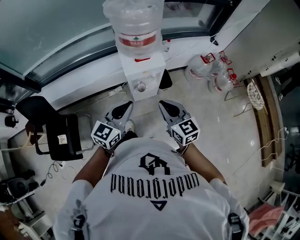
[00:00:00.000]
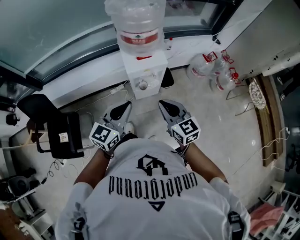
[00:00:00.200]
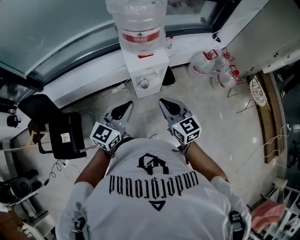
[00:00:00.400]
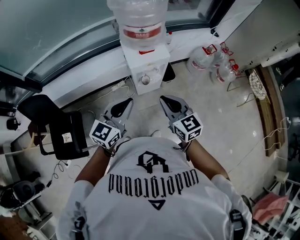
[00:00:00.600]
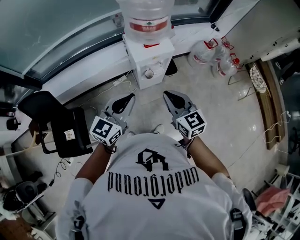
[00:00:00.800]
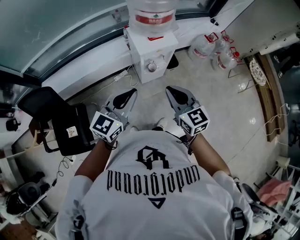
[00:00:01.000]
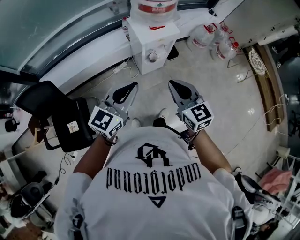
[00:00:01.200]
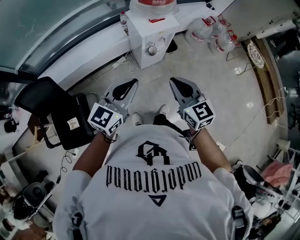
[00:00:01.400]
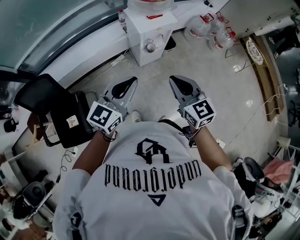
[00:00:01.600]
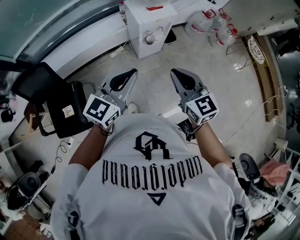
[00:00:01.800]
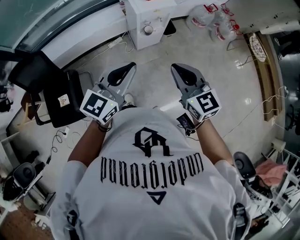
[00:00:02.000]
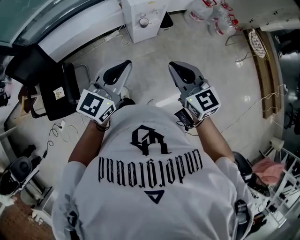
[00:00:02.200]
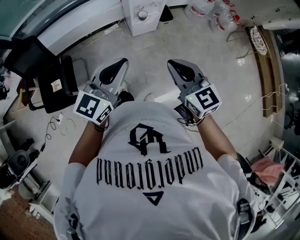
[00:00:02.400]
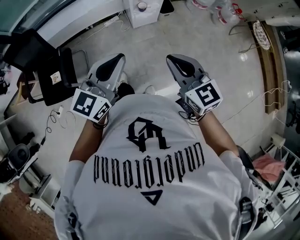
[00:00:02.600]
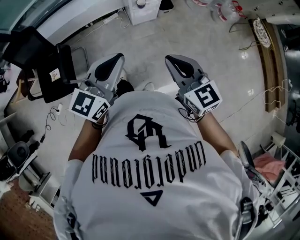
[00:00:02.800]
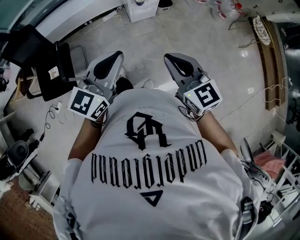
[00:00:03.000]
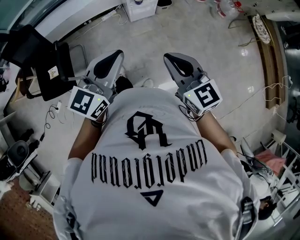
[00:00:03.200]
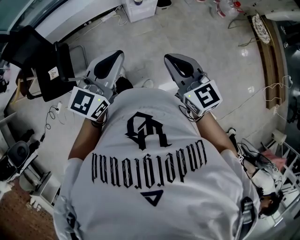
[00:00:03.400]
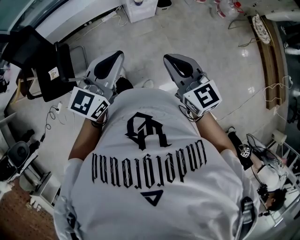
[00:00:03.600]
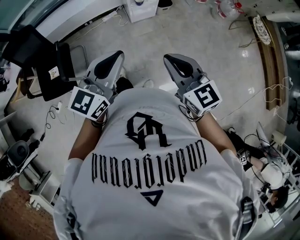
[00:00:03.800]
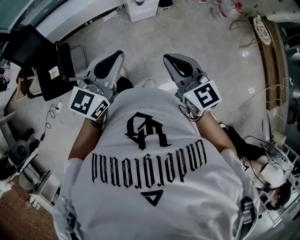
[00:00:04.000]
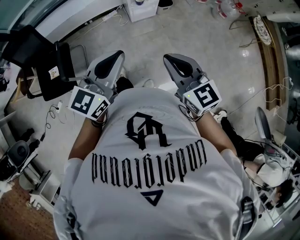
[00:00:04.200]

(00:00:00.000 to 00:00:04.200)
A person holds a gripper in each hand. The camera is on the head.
00:00:00.000 - 00:00:01.400: The two grippers go some 20 cm to the left and backward.
00:00:01.400 - 00:00:02.800: Both grippers travel together backward and to the right, roughly 25 cm.
00:00:02.800 - 00:00:04.200: There are only small adjustments of the grippers.

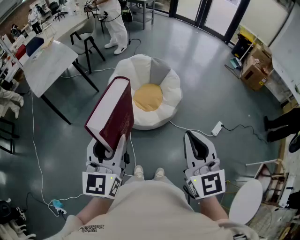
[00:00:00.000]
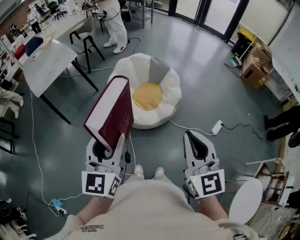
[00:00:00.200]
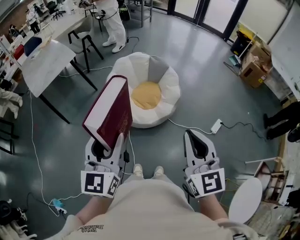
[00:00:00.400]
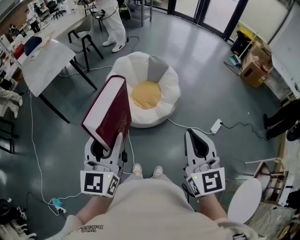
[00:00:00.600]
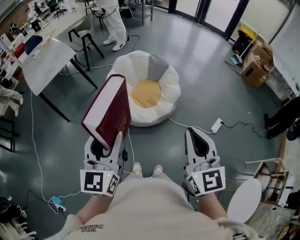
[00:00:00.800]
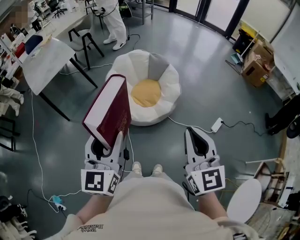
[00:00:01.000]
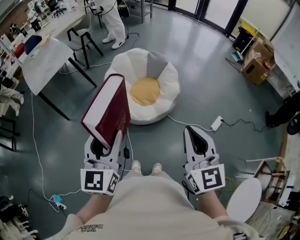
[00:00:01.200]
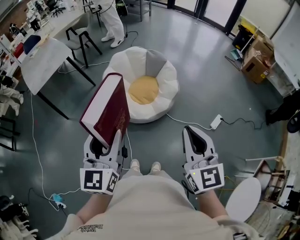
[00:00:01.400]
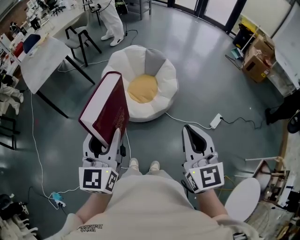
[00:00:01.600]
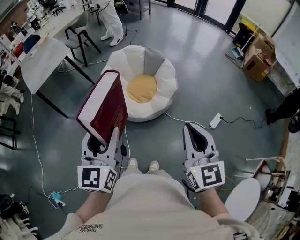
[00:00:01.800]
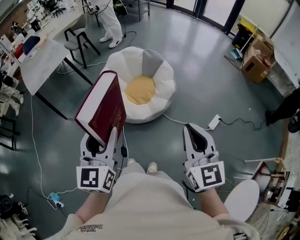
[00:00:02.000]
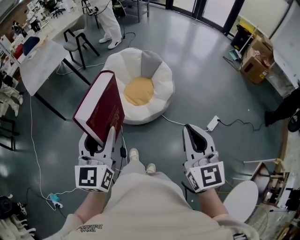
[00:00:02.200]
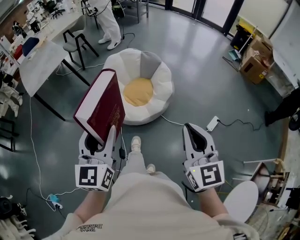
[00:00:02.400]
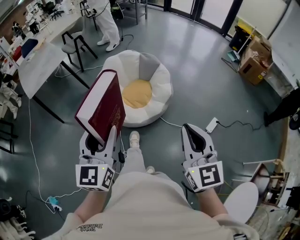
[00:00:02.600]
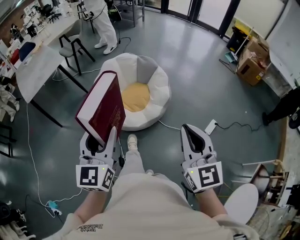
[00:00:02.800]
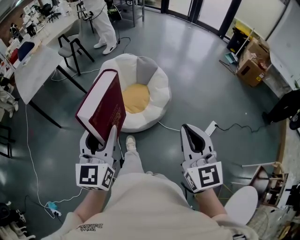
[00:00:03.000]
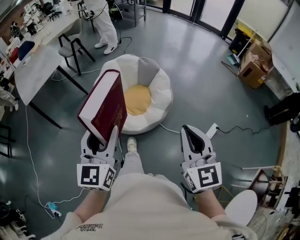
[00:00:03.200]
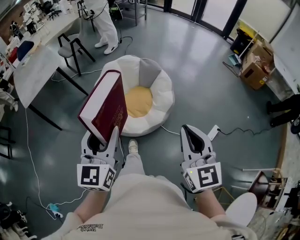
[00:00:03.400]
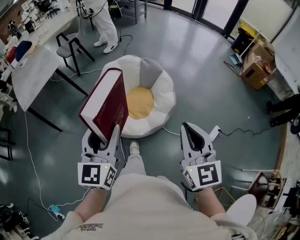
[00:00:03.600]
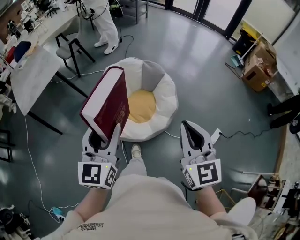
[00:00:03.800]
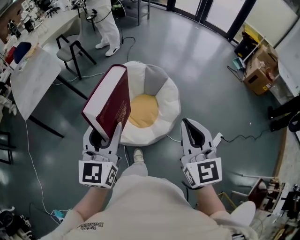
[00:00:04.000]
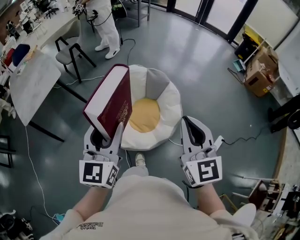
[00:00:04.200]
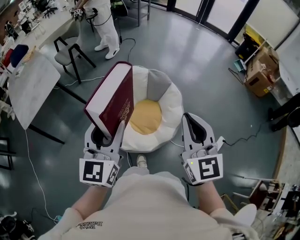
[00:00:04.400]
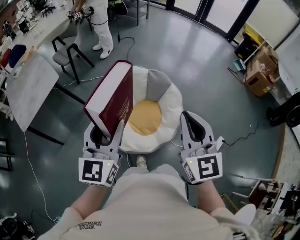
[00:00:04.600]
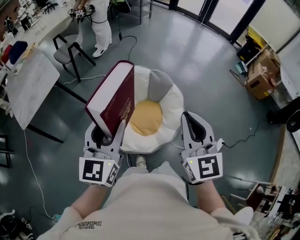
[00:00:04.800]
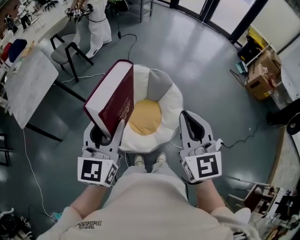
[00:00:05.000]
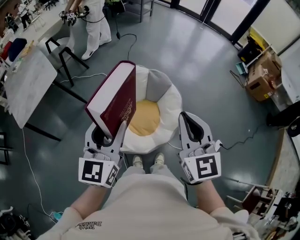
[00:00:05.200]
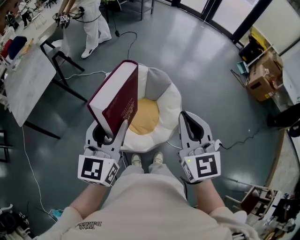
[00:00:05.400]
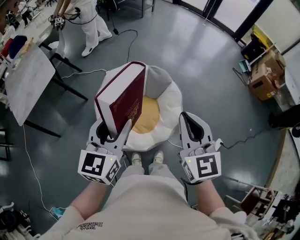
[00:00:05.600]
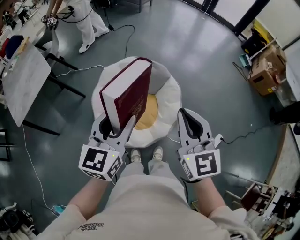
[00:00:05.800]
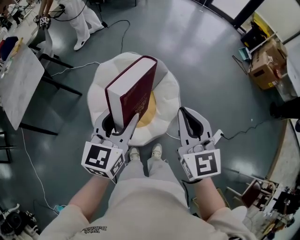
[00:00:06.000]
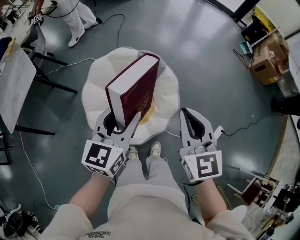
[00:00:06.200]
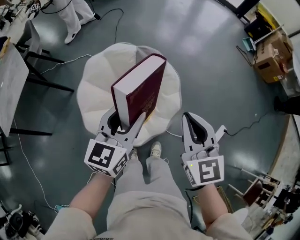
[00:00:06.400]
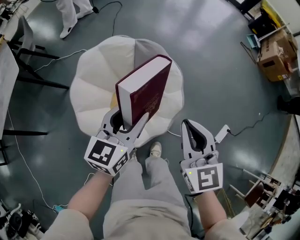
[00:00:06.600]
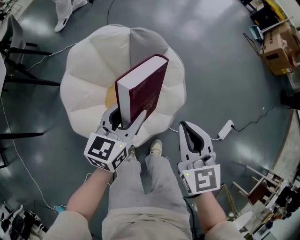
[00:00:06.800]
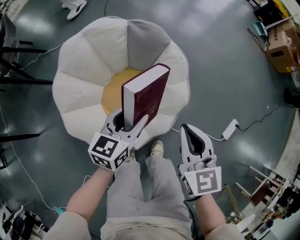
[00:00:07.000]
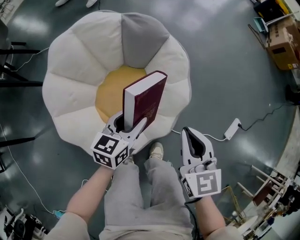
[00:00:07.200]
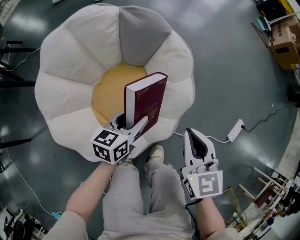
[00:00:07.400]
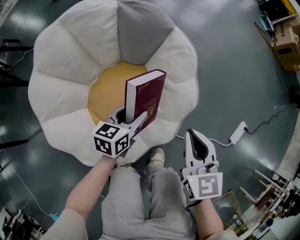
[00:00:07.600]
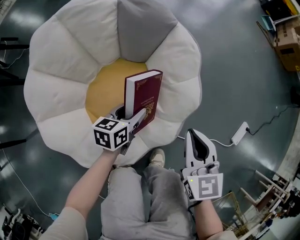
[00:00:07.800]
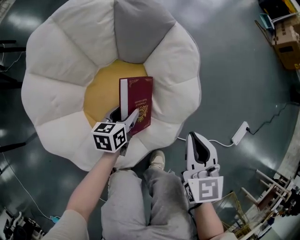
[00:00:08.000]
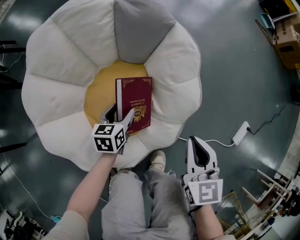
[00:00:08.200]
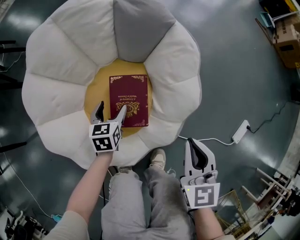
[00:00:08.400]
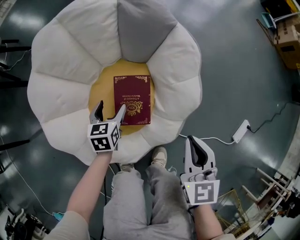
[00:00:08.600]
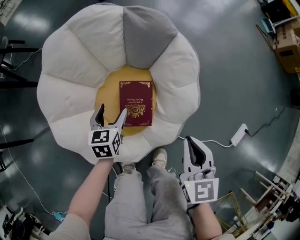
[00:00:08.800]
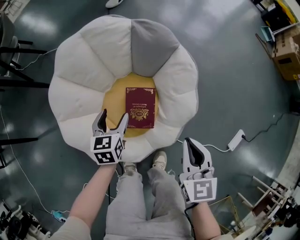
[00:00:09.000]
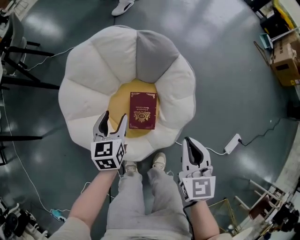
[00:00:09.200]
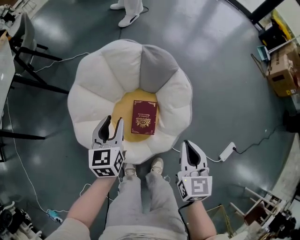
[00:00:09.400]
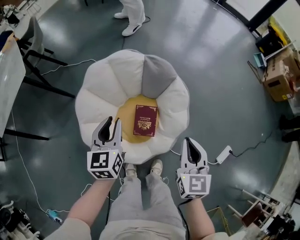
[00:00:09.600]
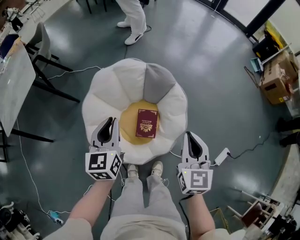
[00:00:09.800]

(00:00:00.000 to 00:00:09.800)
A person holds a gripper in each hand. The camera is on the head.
00:00:00.000 - 00:00:01.400: The two grippers go about 5 cm to the right.
00:00:01.400 - 00:00:02.800: The two grippers go about 5 cm to the right.
00:00:02.800 - 00:00:04.200: The grippers both shift forward by some 35 cm.
00:00:04.200 - 00:00:05.600: Both grippers travel together forward, some 10 cm.
00:00:05.600 - 00:00:07.000: Both grippers travel together downward, roughly 50 cm. The left gripper rotates about 30 degrees; the right gripper swivels some 20 degrees.
00:00:07.000 - 00:00:08.400: The right gripper heads downward, covering roughly 20 cm, while the left gripper heads downward, covering about 30 cm, rotates some 30 degrees, and opens its fingers.
00:00:08.400 - 00:00:09.800: Both grippers travel together upward, about 50 cm. The left gripper turns by some 30 degrees, and closes up.

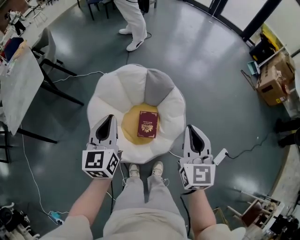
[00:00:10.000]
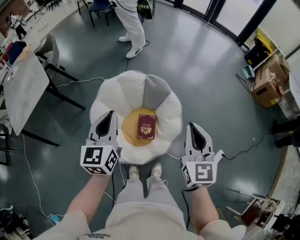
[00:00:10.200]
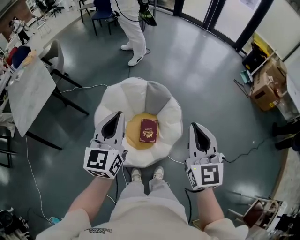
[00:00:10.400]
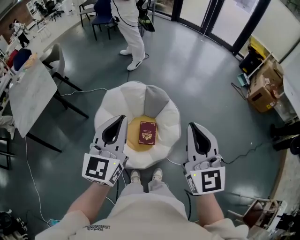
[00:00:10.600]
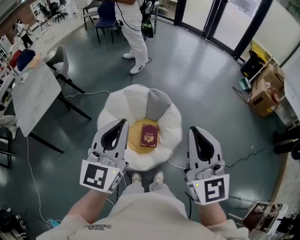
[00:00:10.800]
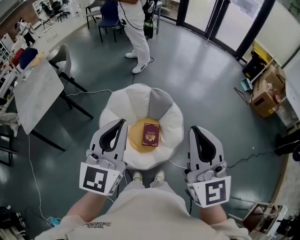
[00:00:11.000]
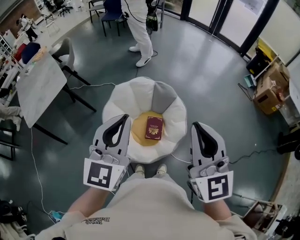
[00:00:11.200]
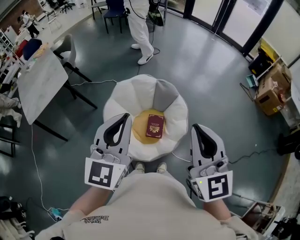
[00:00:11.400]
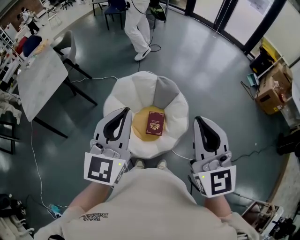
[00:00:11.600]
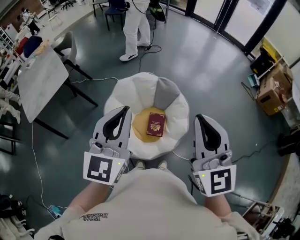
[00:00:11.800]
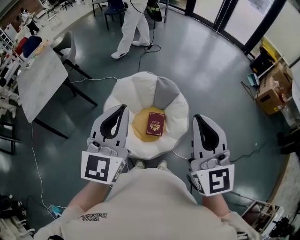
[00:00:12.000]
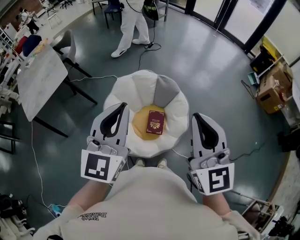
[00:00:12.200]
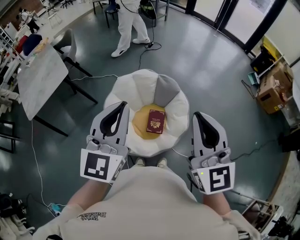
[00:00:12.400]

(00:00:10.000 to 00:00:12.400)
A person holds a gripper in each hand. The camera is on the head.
00:00:10.000 - 00:00:11.200: Both grippers move upward and backward, some 30 cm. The left gripper changes its angle by some 20 degrees, while the right gripper swivels about 20 degrees.
00:00:11.200 - 00:00:12.400: The grippers move only a little.

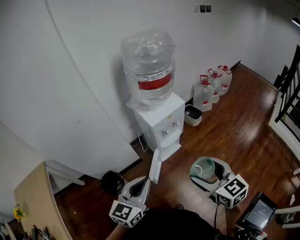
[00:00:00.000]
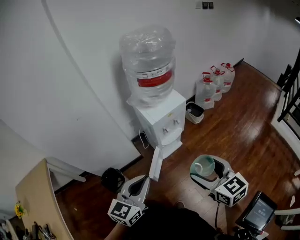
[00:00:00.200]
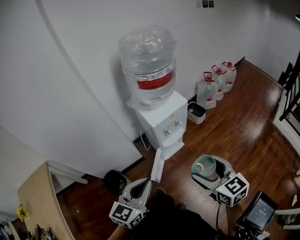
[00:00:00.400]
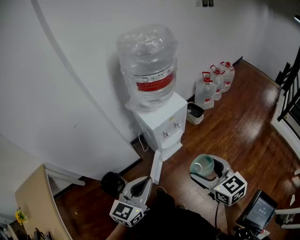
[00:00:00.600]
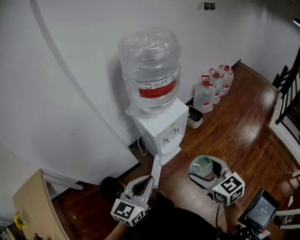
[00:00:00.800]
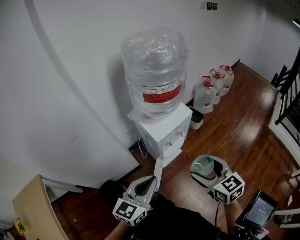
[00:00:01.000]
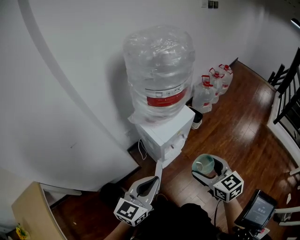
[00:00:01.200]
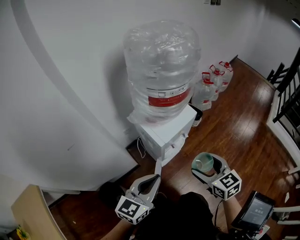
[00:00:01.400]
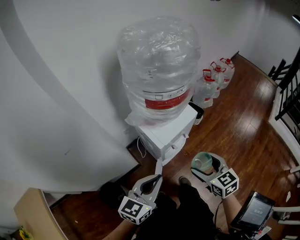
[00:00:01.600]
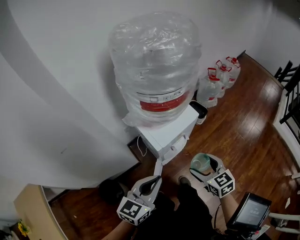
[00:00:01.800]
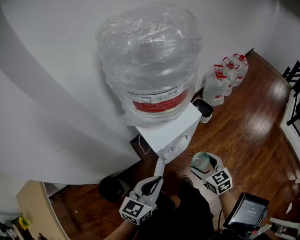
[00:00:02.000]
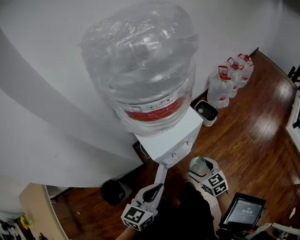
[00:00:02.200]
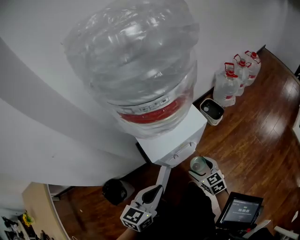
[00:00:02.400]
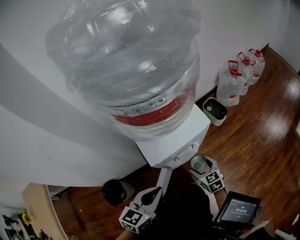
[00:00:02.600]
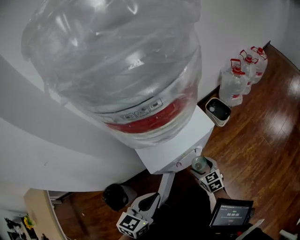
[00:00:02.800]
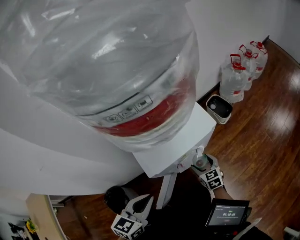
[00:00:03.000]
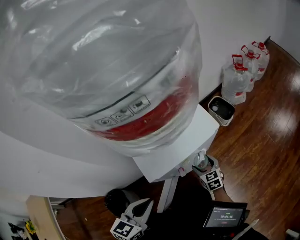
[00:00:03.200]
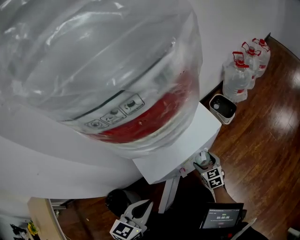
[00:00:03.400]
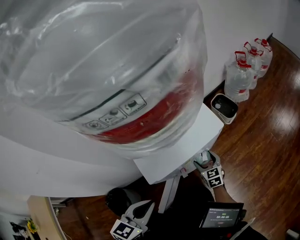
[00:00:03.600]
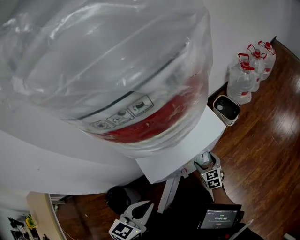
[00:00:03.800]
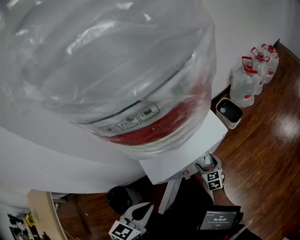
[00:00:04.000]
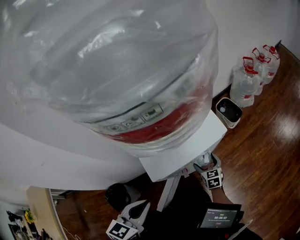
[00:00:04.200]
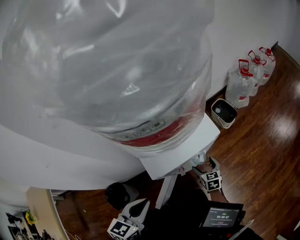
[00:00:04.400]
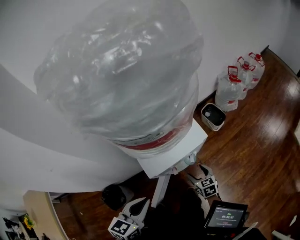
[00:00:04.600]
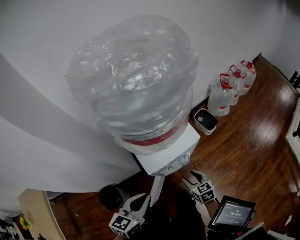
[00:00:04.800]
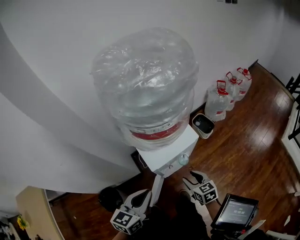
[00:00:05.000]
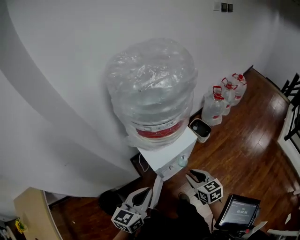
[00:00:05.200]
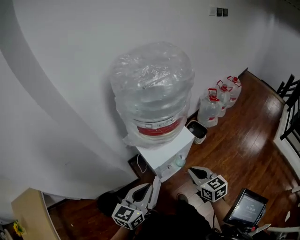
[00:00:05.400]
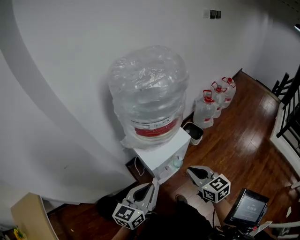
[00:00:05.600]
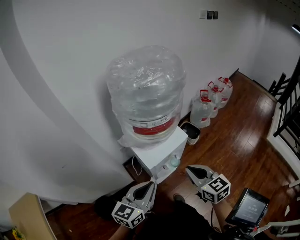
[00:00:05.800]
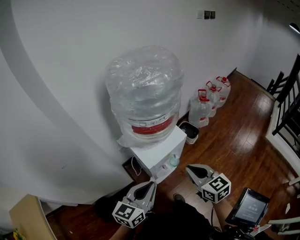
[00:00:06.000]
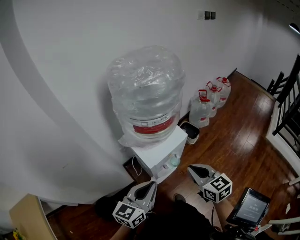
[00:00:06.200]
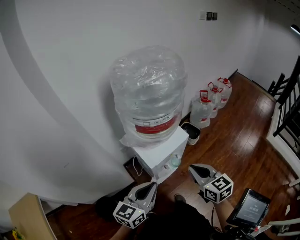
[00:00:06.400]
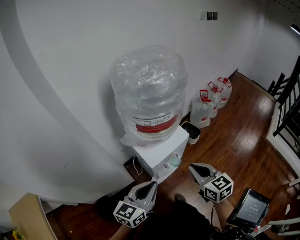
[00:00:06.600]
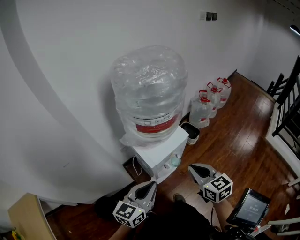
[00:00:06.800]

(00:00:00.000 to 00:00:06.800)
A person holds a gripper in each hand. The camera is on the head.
00:00:00.000 - 00:00:01.400: The right gripper goes some 25 cm forward and downward. Meanwhile the left gripper shifts about 20 cm forward.
00:00:01.400 - 00:00:02.800: The right gripper travels downward and forward by roughly 40 cm; the left gripper travels downward and forward by roughly 25 cm.
00:00:02.800 - 00:00:04.000: The right gripper moves downward and forward, some 10 cm; the left gripper ends up roughly 5 cm from where it was.
00:00:04.000 - 00:00:05.400: The right gripper shifts some 40 cm upward, and closes; the left gripper moves upward, about 25 cm.
00:00:05.400 - 00:00:06.800: The right gripper shifts roughly 10 cm upward.
